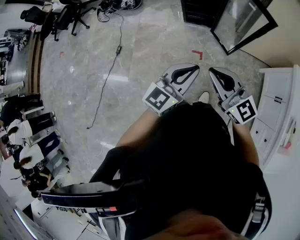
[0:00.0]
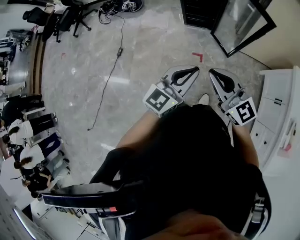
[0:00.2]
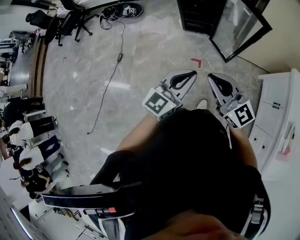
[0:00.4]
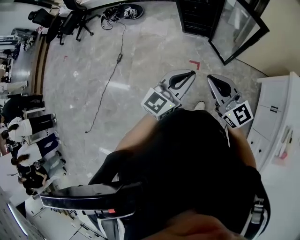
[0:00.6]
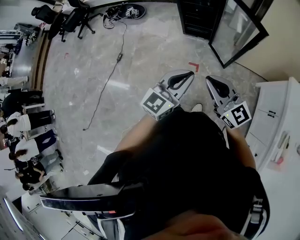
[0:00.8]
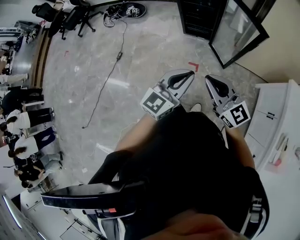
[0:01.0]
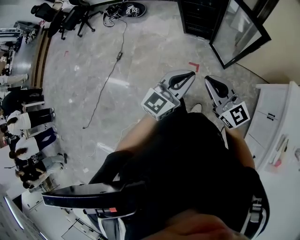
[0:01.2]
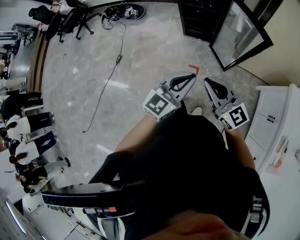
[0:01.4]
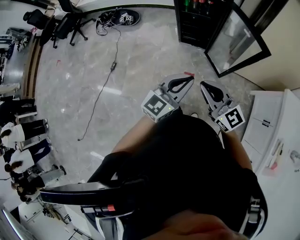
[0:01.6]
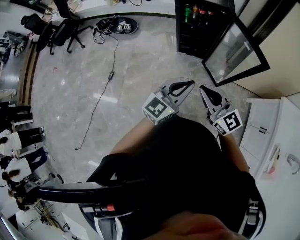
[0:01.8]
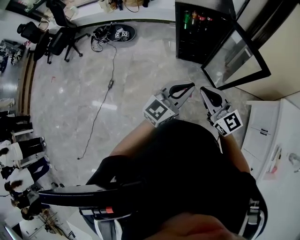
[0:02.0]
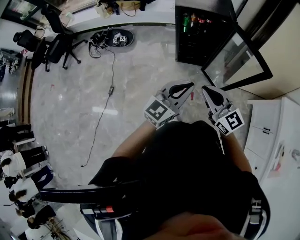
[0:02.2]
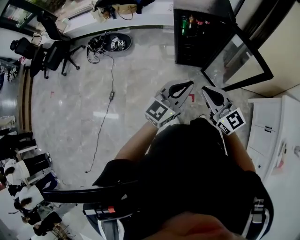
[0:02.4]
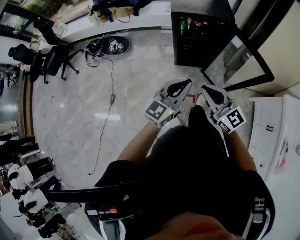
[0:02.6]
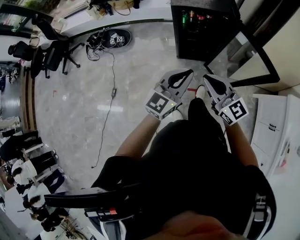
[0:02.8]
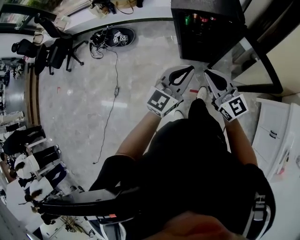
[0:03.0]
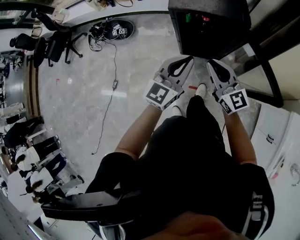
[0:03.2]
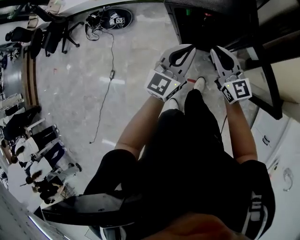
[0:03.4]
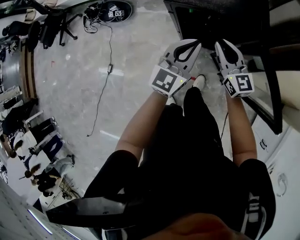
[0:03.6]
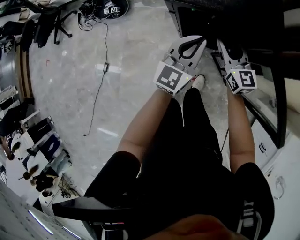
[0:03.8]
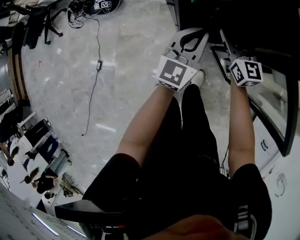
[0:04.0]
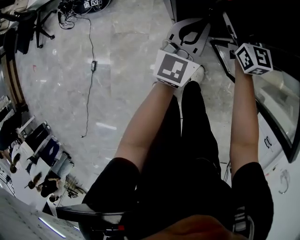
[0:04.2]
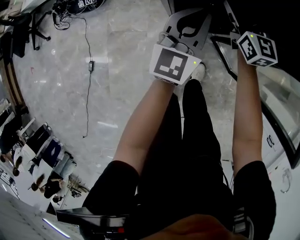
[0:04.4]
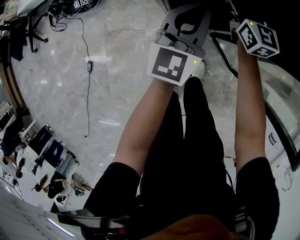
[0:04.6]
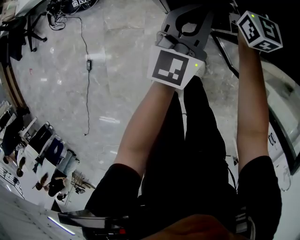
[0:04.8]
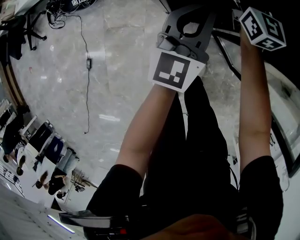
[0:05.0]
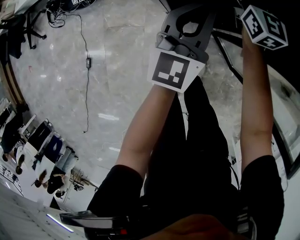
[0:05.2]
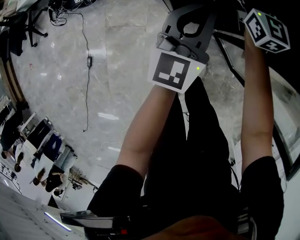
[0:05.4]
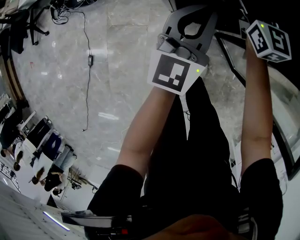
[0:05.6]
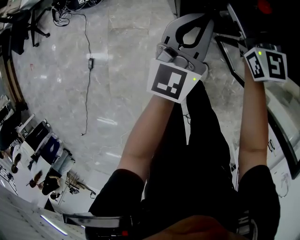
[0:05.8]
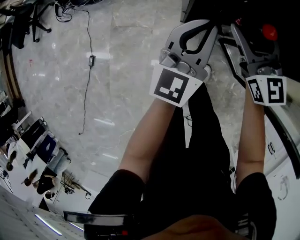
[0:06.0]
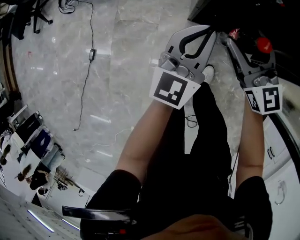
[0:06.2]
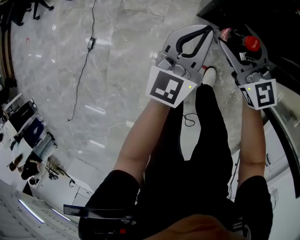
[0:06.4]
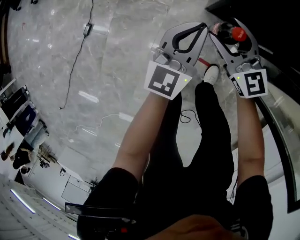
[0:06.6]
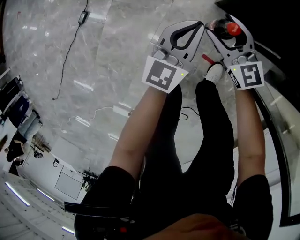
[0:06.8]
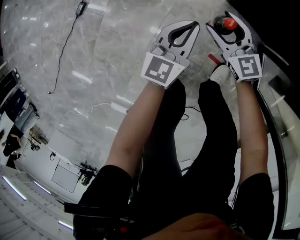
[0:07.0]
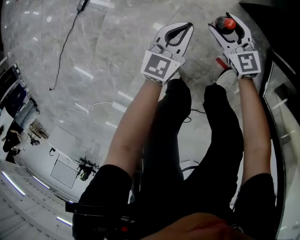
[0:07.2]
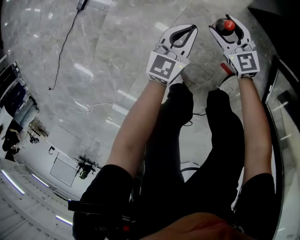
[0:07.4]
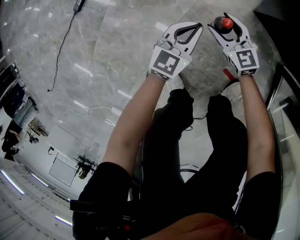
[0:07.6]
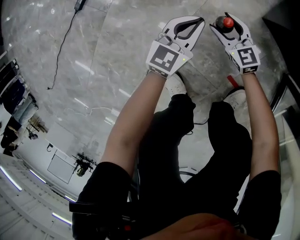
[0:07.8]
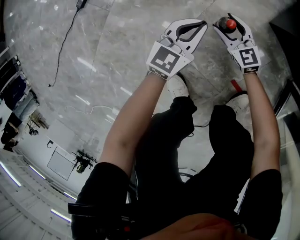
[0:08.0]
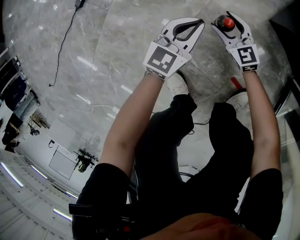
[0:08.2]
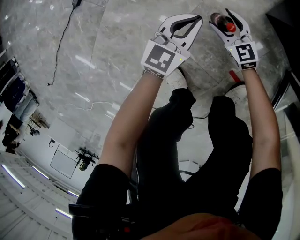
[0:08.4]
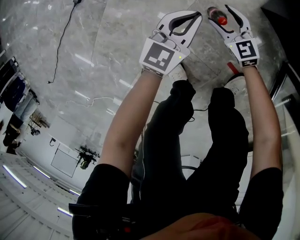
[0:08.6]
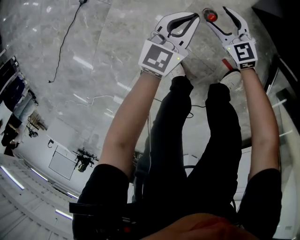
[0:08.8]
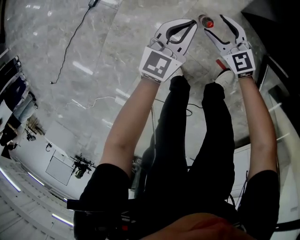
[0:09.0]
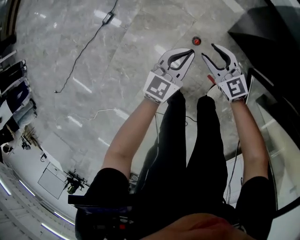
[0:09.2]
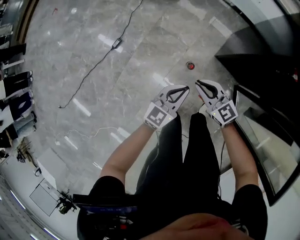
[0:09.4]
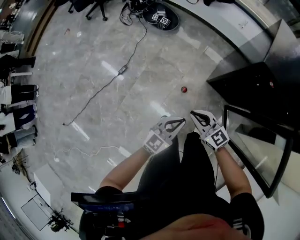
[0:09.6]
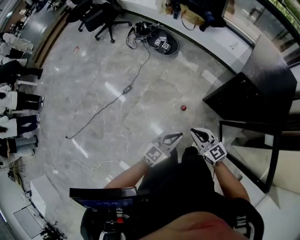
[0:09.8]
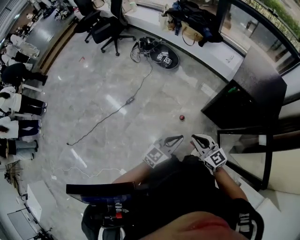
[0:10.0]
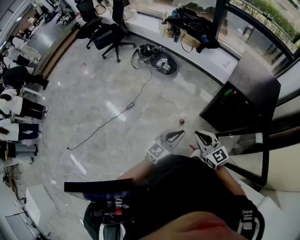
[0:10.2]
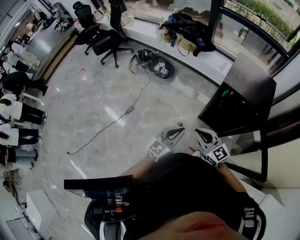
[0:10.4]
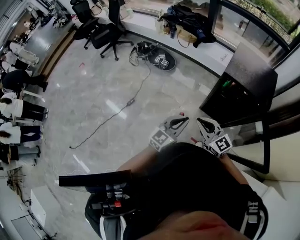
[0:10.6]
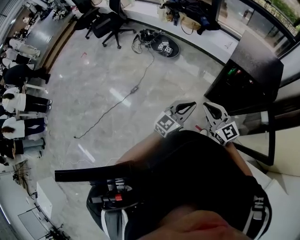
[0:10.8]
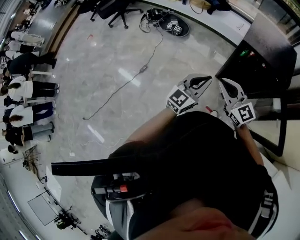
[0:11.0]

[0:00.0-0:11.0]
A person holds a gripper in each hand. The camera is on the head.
0:00.0 to 0:01.6: The two grippers go approximately 10 cm forward.
0:01.6 to 0:03.2: The two grippers go roughly 40 cm forward.
0:03.2 to 0:04.8: The left gripper moves downward and forward, approximately 35 cm; the right gripper goes roughly 50 cm forward and downward, and opens up.
0:04.8 to 0:06.2: The left gripper is displaced backward and to the left by roughly 15 cm. The right gripper goes some 25 cm backward and to the left, and swivels approximately 20 degrees.
0:06.2 to 0:07.8: The grippers both shift downward and to the left by about 60 cm. The left gripper rotates approximately 20 degrees; the right gripper changes its angle by some 40 degrees.
0:07.8 to 0:09.4: Both grippers move upward, about 50 cm. The right gripper closes its fingers.
0:09.4 to 0:11.0: Both grippers move upward, some 40 cm. The left gripper swivels some 20 degrees, while the right gripper swivels roughly 20 degrees.

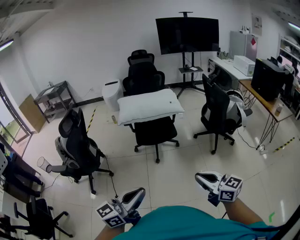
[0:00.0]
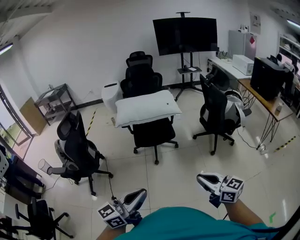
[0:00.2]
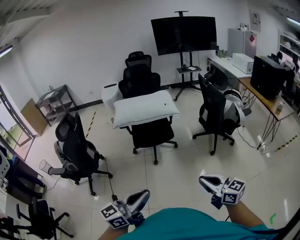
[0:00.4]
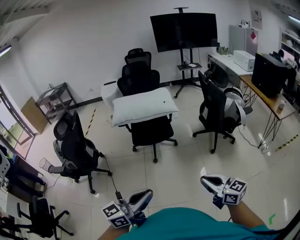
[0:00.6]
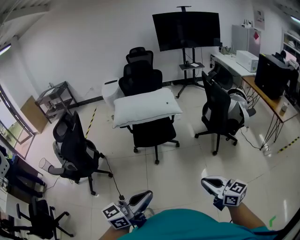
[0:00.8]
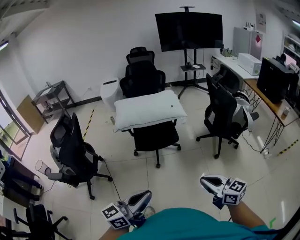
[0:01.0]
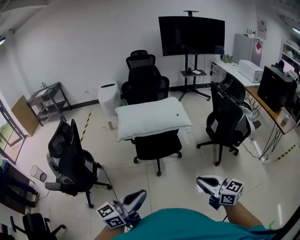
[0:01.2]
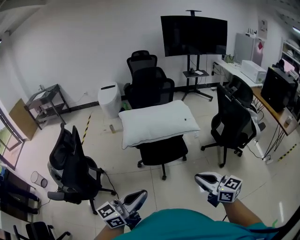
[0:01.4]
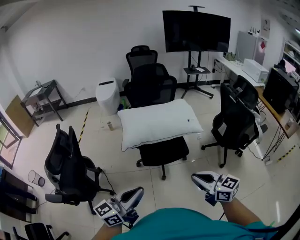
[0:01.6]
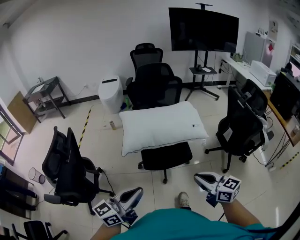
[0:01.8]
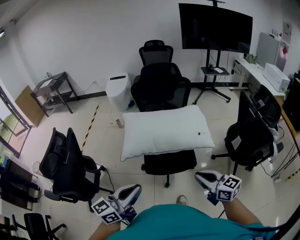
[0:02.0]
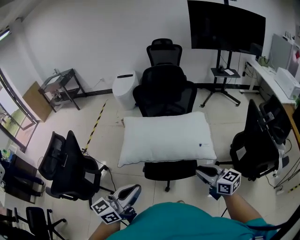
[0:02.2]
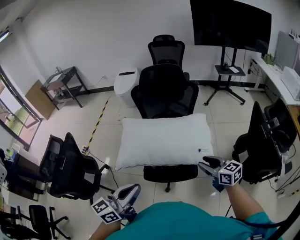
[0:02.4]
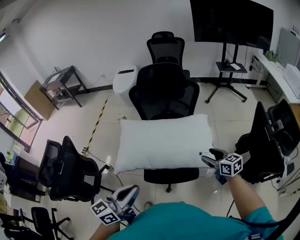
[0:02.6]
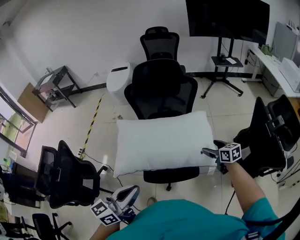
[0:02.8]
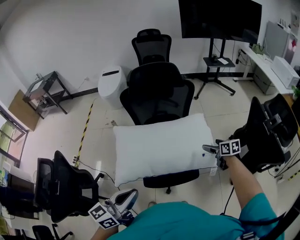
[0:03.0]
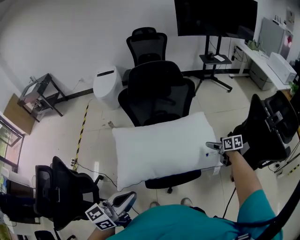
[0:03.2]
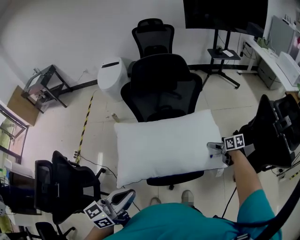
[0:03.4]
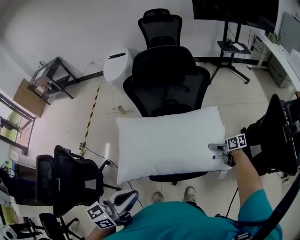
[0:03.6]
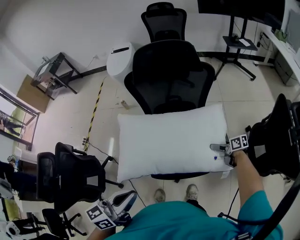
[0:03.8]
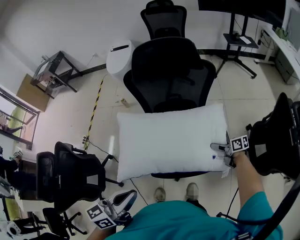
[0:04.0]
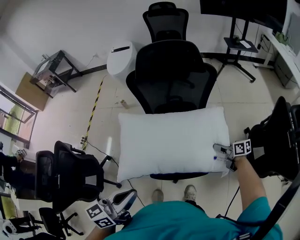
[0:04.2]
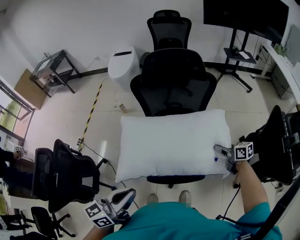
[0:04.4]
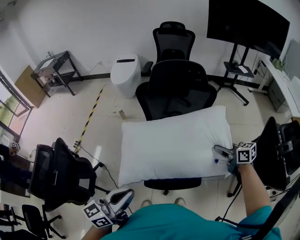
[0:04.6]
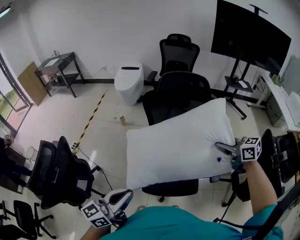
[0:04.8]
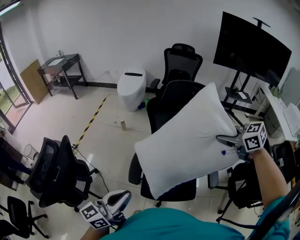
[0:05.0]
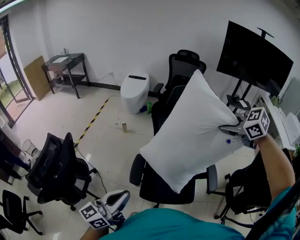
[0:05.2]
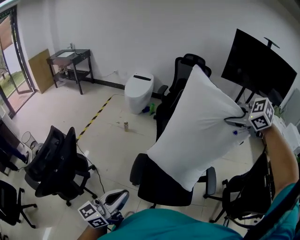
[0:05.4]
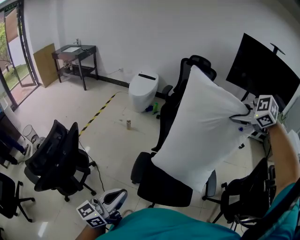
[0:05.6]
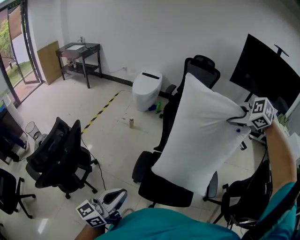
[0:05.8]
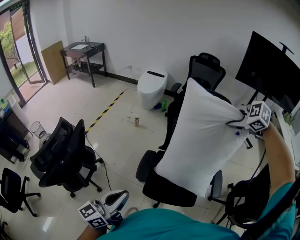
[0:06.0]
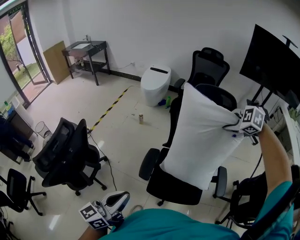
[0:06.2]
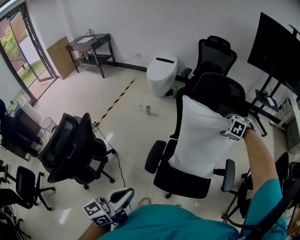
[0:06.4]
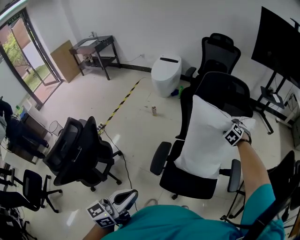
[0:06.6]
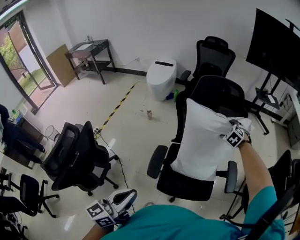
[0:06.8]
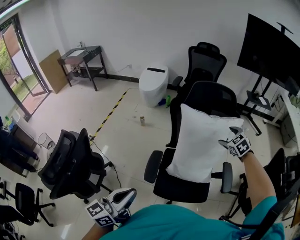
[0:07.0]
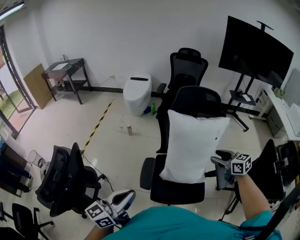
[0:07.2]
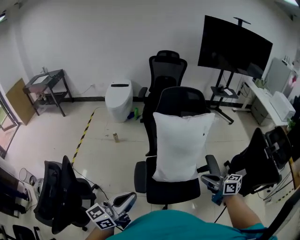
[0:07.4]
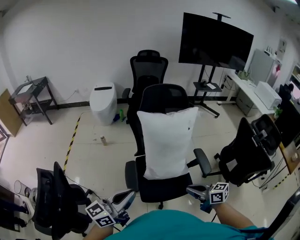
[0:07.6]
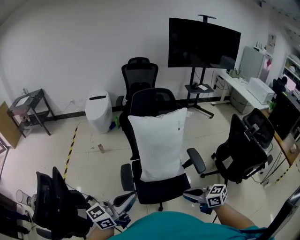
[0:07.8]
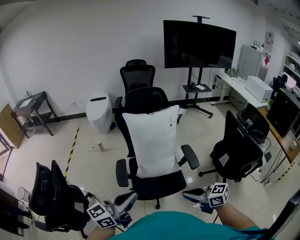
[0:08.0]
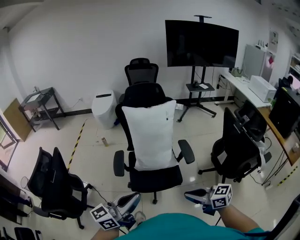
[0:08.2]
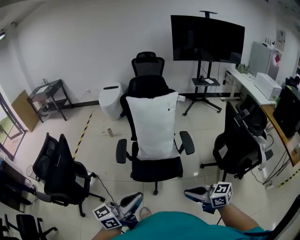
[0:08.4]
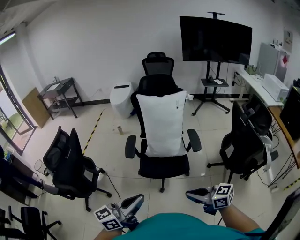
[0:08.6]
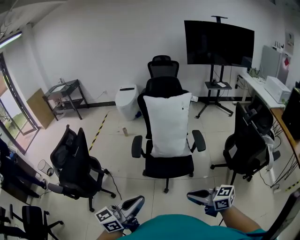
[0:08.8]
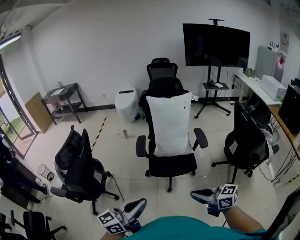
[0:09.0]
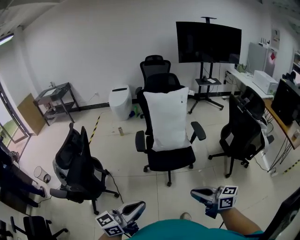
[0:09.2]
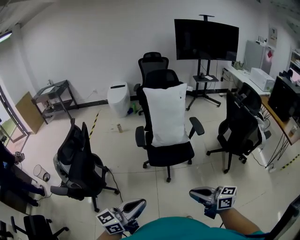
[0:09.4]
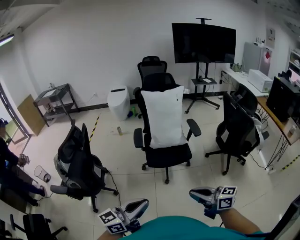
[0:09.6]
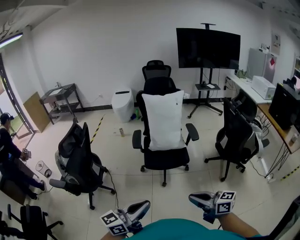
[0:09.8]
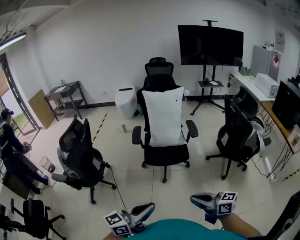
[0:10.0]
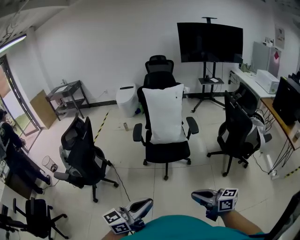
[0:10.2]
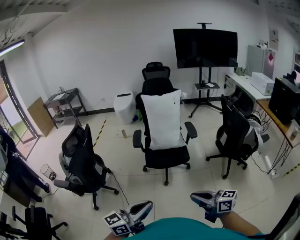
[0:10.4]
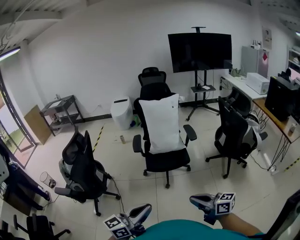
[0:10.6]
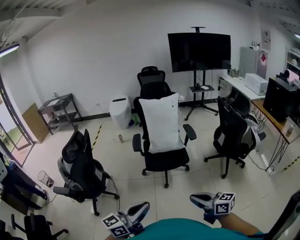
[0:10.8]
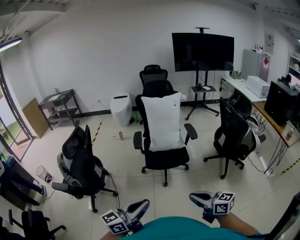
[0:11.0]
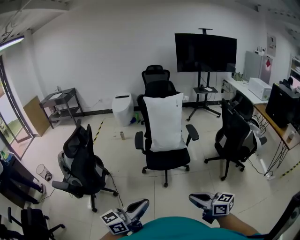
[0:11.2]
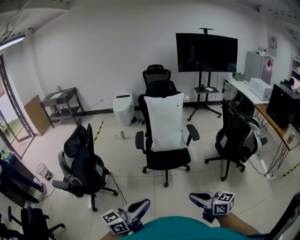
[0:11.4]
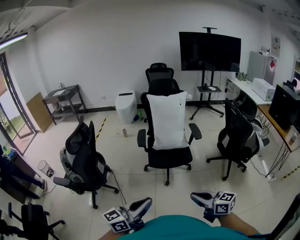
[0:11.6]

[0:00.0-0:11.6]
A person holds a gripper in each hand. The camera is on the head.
0:00.0 to 0:01.4: The right gripper heads forward and to the left, covering about 30 cm; the left gripper travels forward by roughly 25 cm.
0:01.4 to 0:02.8: The left gripper heads forward, covering some 35 cm. The right gripper shifts approximately 60 cm forward, rotates some 20 degrees, and opens its fingers.
0:02.8 to 0:04.4: Both grippers travel together forward, some 5 cm. The right gripper moves some 15 cm downward and comes back, and closes up.
0:04.4 to 0:05.8: The right gripper goes approximately 40 cm upward and to the left, and rotates around the line of its fingers by approximately 70 degrees, counterclockwise from behind. Meanwhile the left gripper travels to the left by approximately 15 cm, and swivels roughly 20 degrees.
0:05.8 to 0:07.2: The right gripper is displaced downward by roughly 20 cm, and rotates around the line of its fingers by roughly 50 degrees, clockwise from behind. Meanwhile the left gripper moves some 5 cm.
0:07.2 to 0:08.8: The left gripper is displaced backward and to the right by approximately 40 cm. Meanwhile the right gripper travels backward by about 50 cm, turns by approximately 20 degrees, and closes up.
0:08.8 to 0:10.2: Both grippers travel together backward, approximately 20 cm.
0:10.2 to 0:11.6: The grippers both shift to the left by about 10 cm.

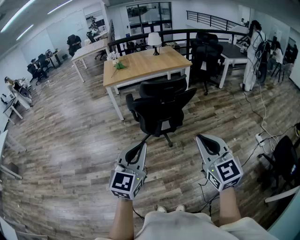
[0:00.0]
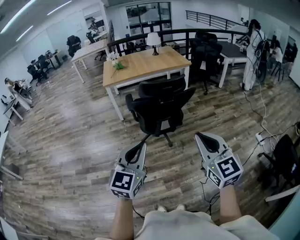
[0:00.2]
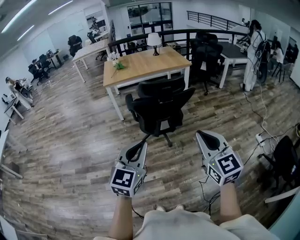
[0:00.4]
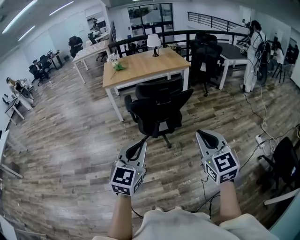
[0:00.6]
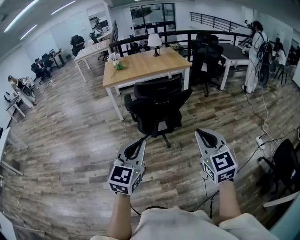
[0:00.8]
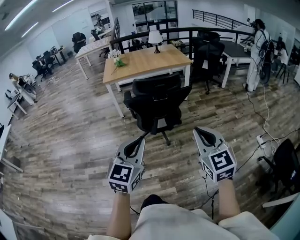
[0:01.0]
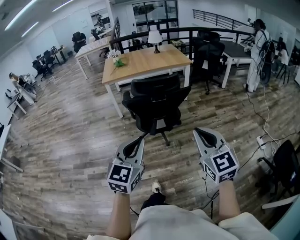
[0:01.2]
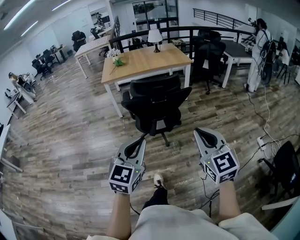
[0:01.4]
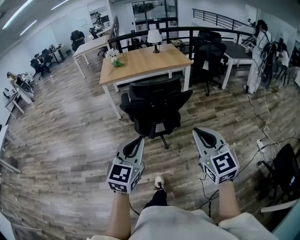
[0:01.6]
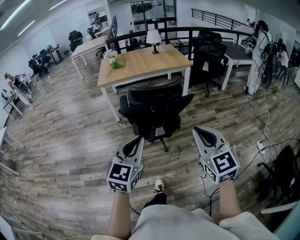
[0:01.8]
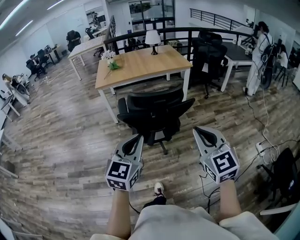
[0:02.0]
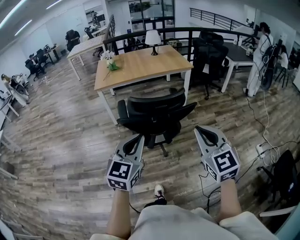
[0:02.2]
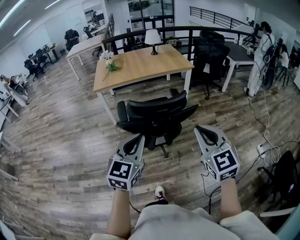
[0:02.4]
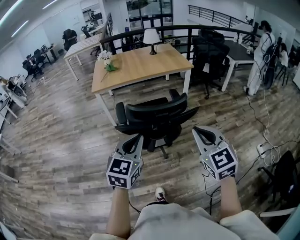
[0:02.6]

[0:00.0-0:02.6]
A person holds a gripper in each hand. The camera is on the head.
0:00.0 to 0:01.2: Both grippers travel together to the right, roughly 10 cm.
0:01.2 to 0:02.6: Both grippers travel together forward, about 25 cm.
